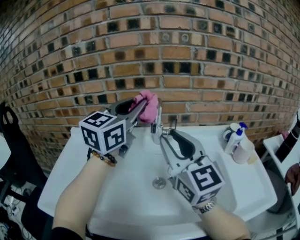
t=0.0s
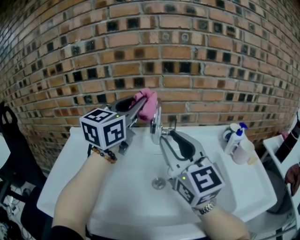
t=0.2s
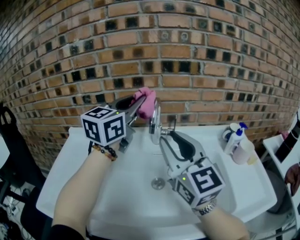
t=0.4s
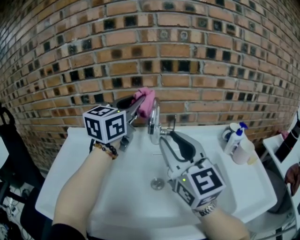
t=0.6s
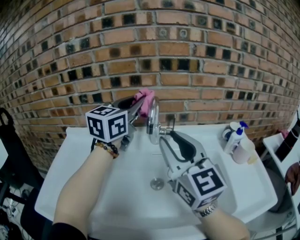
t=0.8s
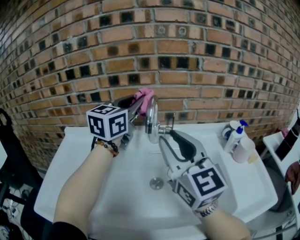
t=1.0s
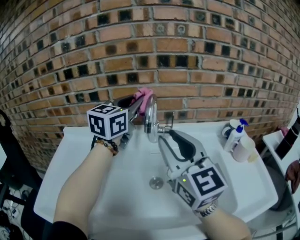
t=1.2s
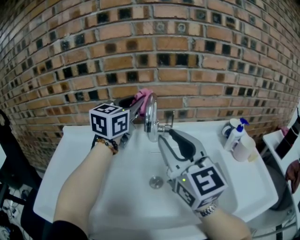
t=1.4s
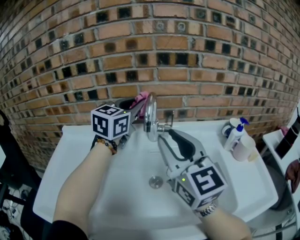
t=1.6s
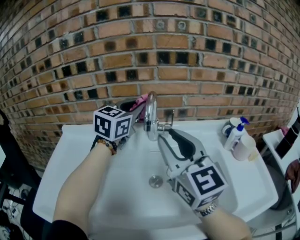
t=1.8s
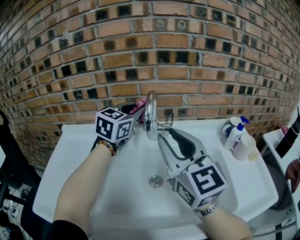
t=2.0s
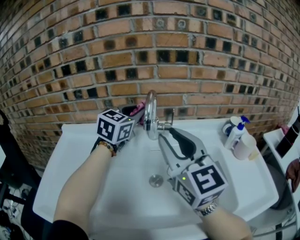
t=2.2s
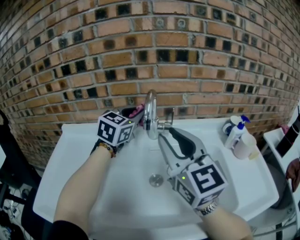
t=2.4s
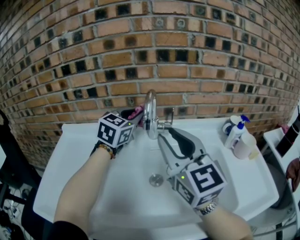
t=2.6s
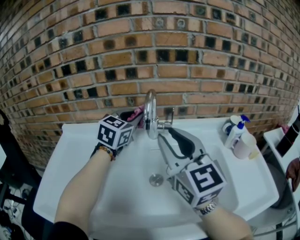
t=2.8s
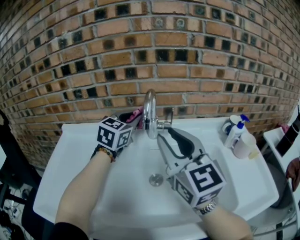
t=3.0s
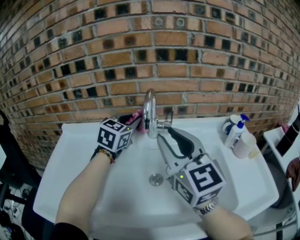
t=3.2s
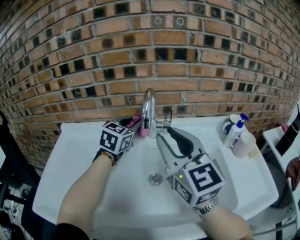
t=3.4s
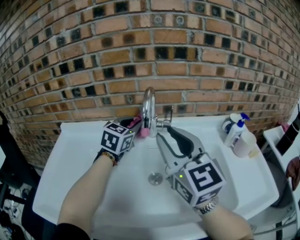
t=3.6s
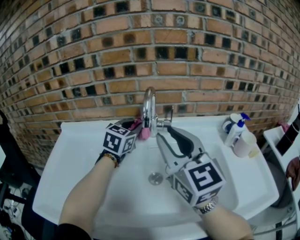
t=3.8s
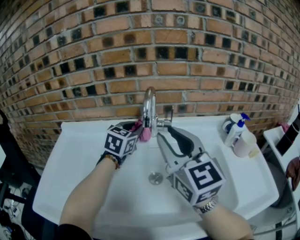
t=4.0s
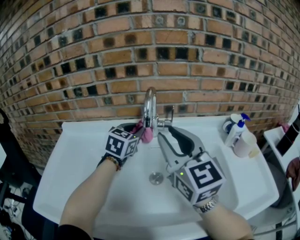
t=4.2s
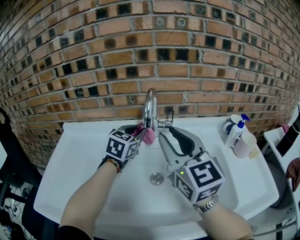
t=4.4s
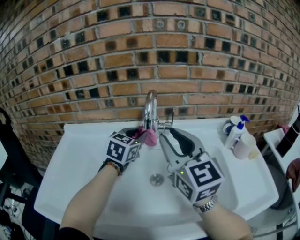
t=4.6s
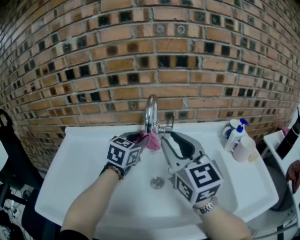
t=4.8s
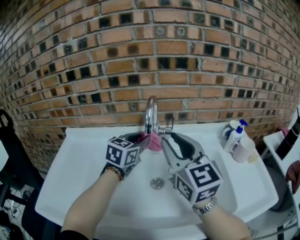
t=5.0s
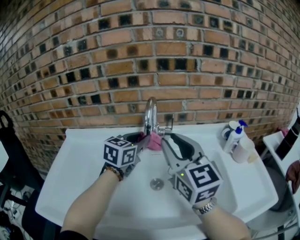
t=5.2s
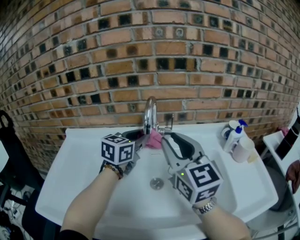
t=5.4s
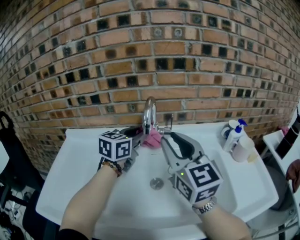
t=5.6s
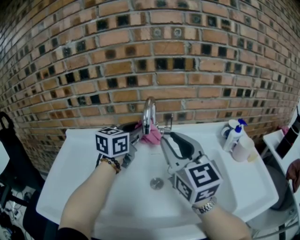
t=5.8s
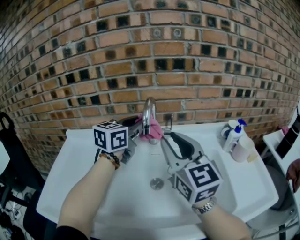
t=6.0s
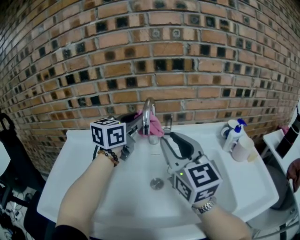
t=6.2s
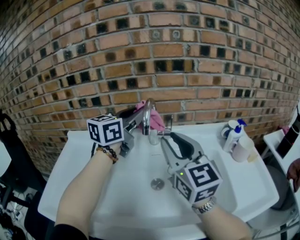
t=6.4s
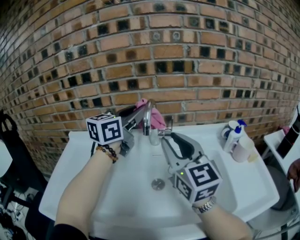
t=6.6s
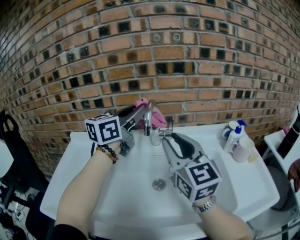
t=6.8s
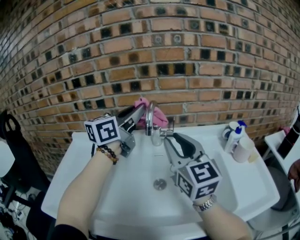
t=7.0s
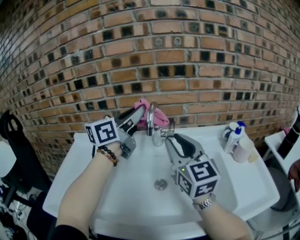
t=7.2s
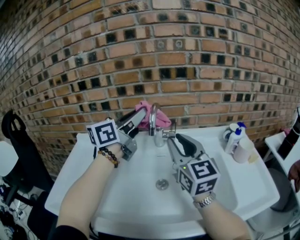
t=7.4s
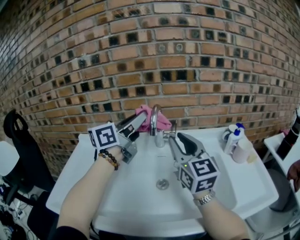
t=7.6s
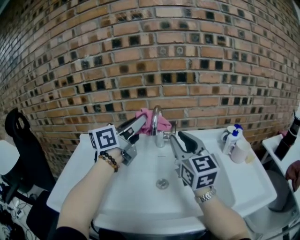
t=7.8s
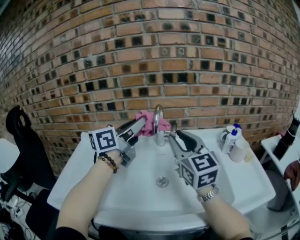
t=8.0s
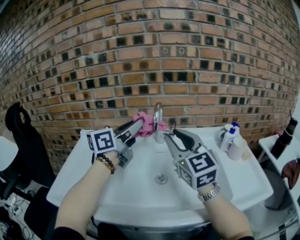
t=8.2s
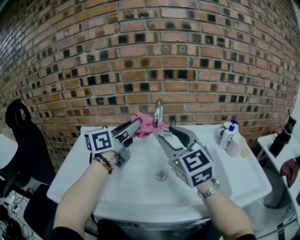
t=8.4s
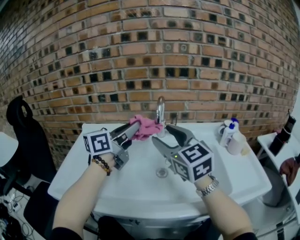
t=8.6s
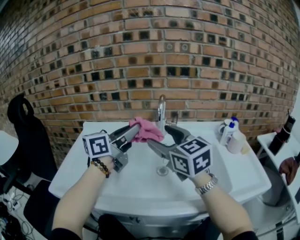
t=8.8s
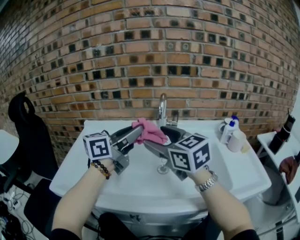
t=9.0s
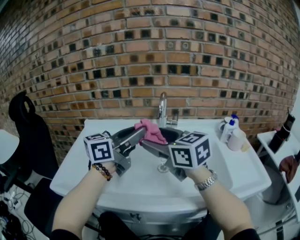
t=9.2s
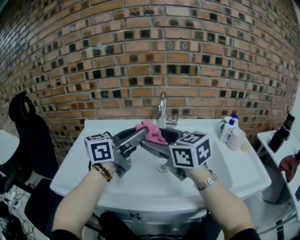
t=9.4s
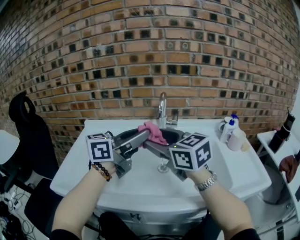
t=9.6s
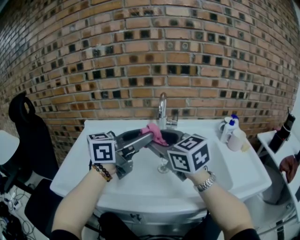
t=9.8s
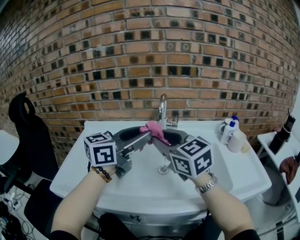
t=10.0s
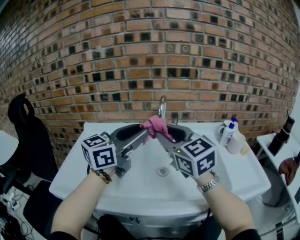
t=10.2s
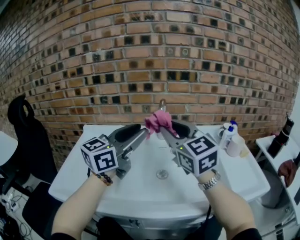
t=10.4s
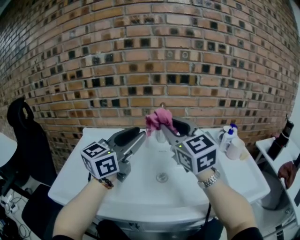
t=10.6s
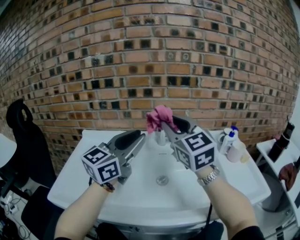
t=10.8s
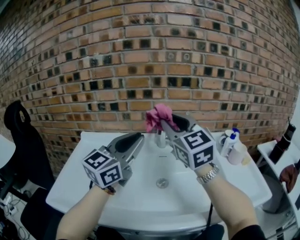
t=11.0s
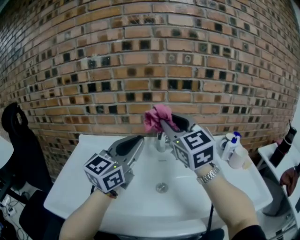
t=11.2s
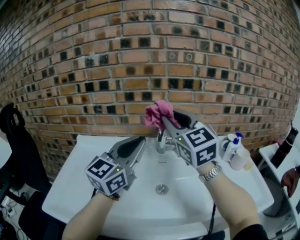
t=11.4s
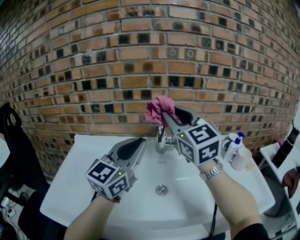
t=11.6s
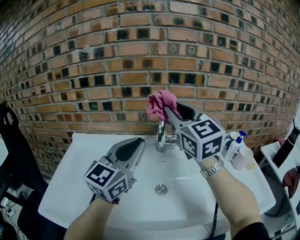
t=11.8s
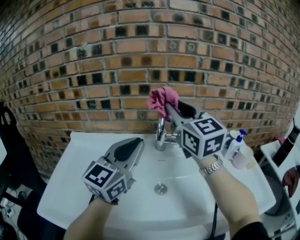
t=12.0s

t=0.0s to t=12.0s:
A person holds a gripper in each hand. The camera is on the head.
t=0.0s to t=1.6s: The left gripper moves forward and downward, approximately 10 cm.
t=1.6s to t=3.0s: The left gripper moves downward, some 10 cm.
t=3.0s to t=4.4s: The left gripper is displaced downward by roughly 5 cm.
t=4.4s to t=6.0s: The left gripper travels upward by about 10 cm, and turns by roughly 20 degrees.
t=6.0s to t=7.6s: The left gripper moves upward and backward, roughly 10 cm, and changes its angle by about 30 degrees.
t=7.6s to t=9.0s: The left gripper moves backward, some 10 cm; the right gripper is displaced to the left and backward by roughly 15 cm, swivels roughly 30 degrees, and opens its fingers.
t=9.0s to t=10.4s: The right gripper moves upward, some 5 cm, and closes its fingers.
t=10.4s to t=12.0s: The right gripper is displaced forward by roughly 15 cm, while the left gripper travels forward by some 5 cm, and closes.

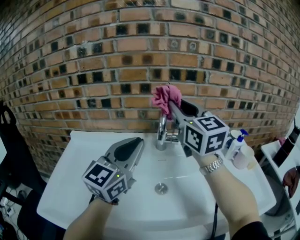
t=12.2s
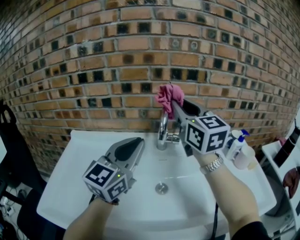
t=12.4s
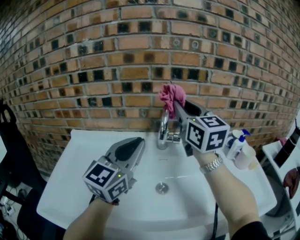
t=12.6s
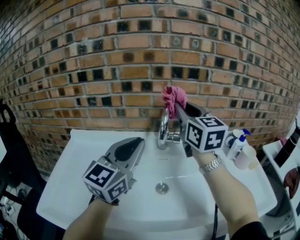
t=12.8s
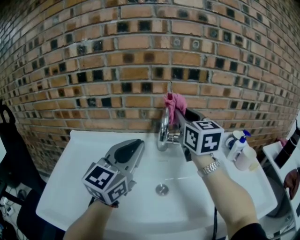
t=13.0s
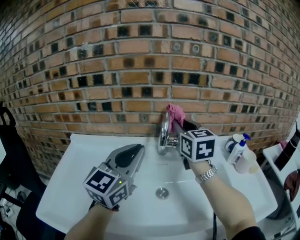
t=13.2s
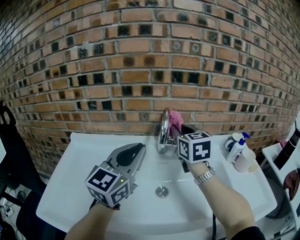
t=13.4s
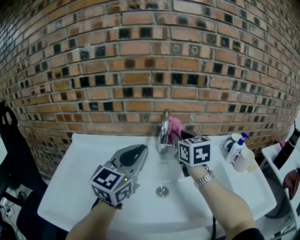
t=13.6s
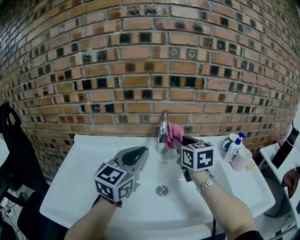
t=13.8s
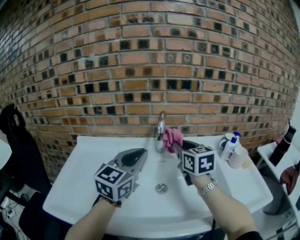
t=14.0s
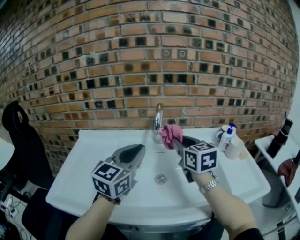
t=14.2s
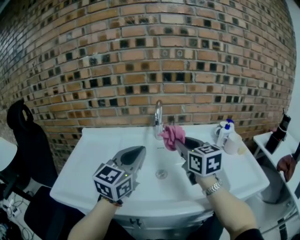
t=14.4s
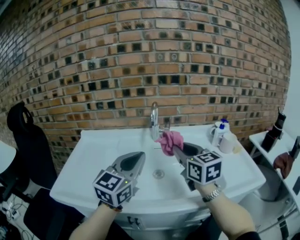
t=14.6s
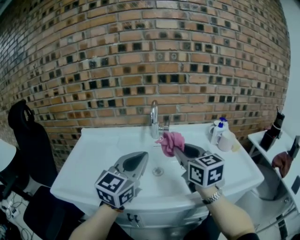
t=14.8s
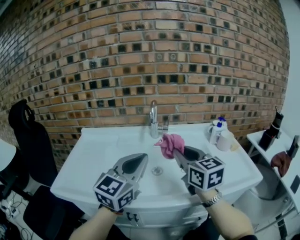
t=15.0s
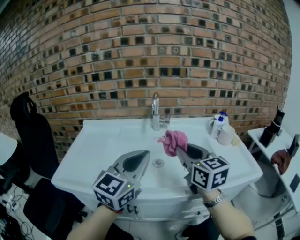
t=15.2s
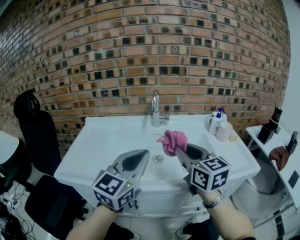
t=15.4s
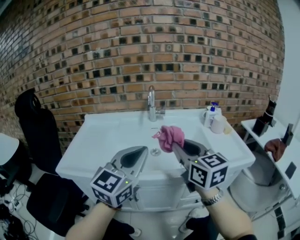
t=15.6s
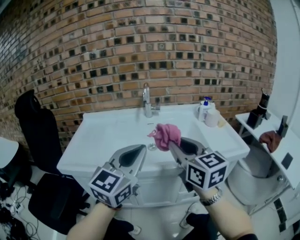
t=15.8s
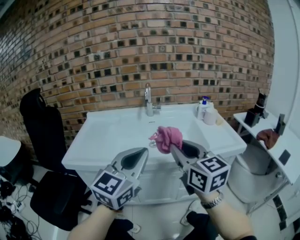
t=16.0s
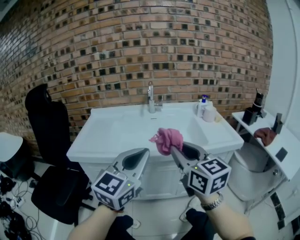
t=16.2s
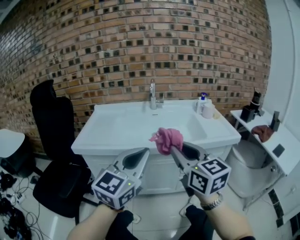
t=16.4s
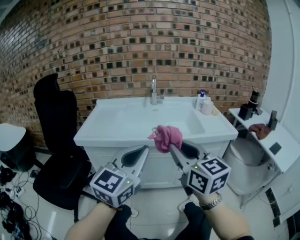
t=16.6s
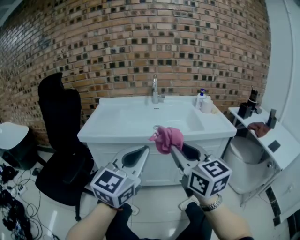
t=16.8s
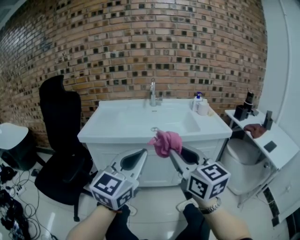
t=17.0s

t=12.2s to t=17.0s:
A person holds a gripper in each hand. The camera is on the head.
t=12.2s to t=13.8s: The right gripper heads downward, covering roughly 15 cm, and swivels about 20 degrees.
t=13.8s to t=15.4s: The two grippers go some 25 cm backward.
t=15.4s to t=17.0s: Both grippers travel together backward, some 35 cm.

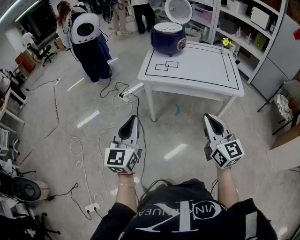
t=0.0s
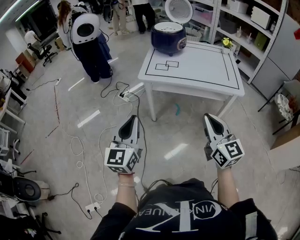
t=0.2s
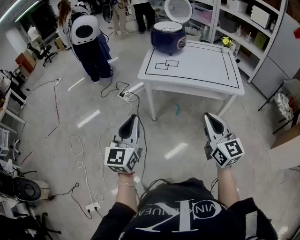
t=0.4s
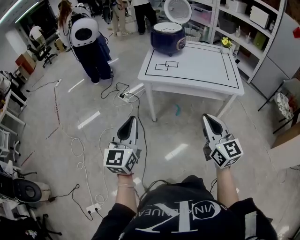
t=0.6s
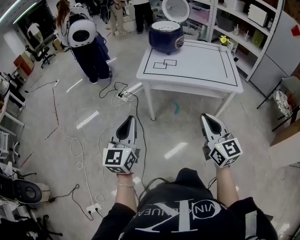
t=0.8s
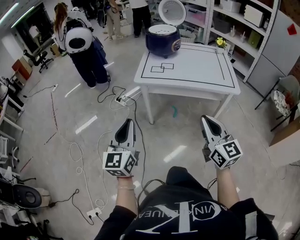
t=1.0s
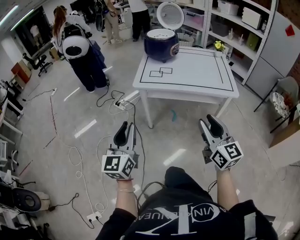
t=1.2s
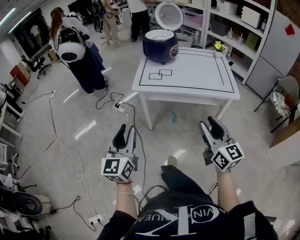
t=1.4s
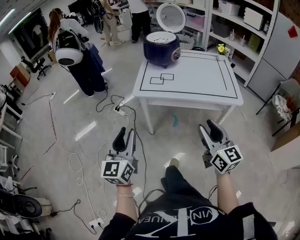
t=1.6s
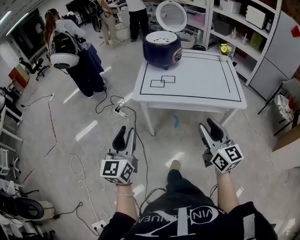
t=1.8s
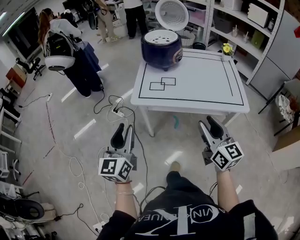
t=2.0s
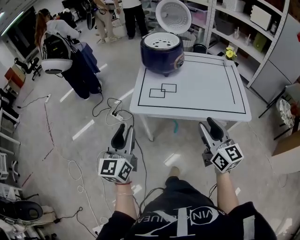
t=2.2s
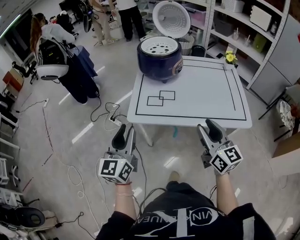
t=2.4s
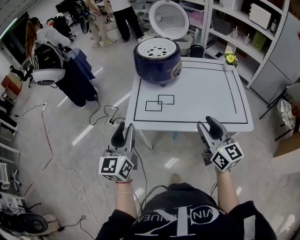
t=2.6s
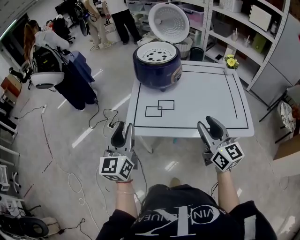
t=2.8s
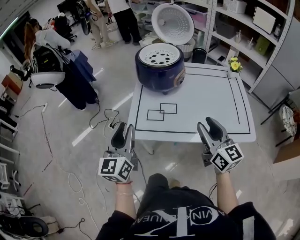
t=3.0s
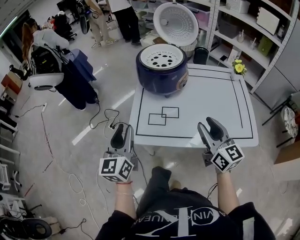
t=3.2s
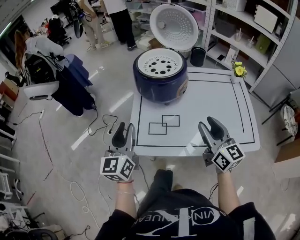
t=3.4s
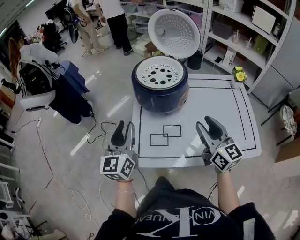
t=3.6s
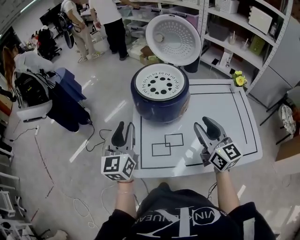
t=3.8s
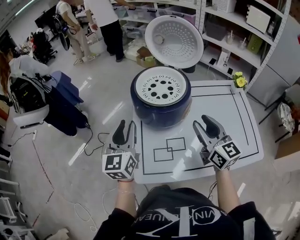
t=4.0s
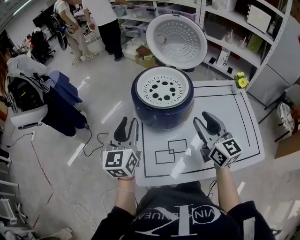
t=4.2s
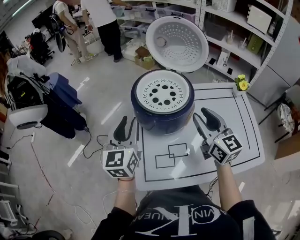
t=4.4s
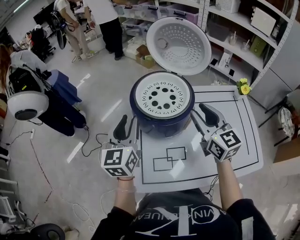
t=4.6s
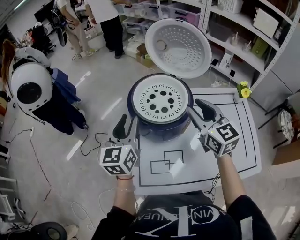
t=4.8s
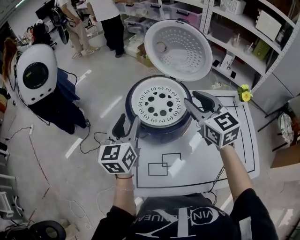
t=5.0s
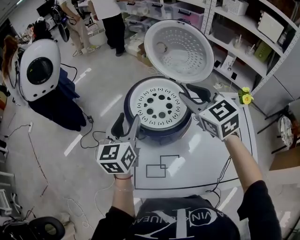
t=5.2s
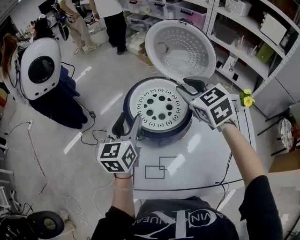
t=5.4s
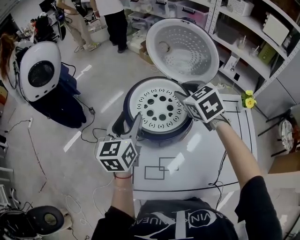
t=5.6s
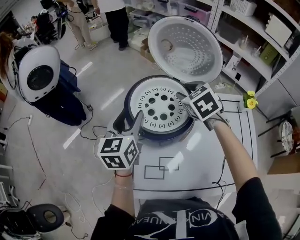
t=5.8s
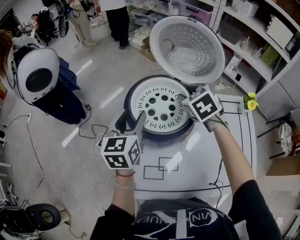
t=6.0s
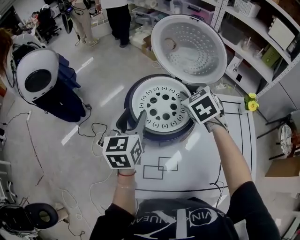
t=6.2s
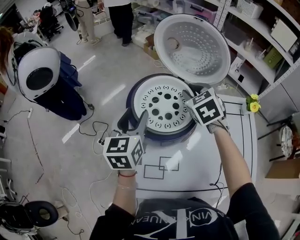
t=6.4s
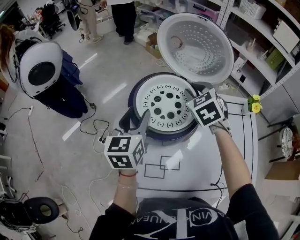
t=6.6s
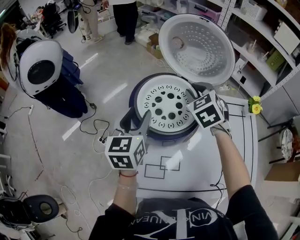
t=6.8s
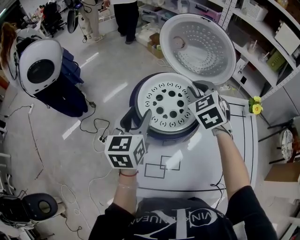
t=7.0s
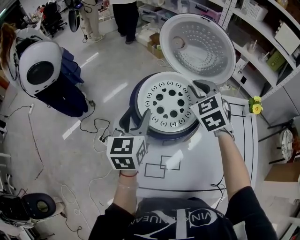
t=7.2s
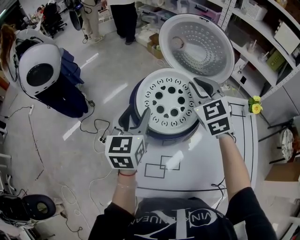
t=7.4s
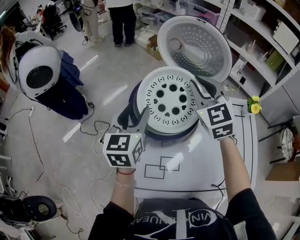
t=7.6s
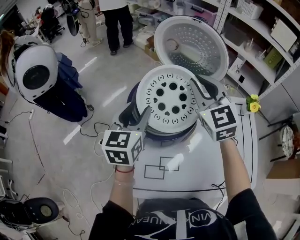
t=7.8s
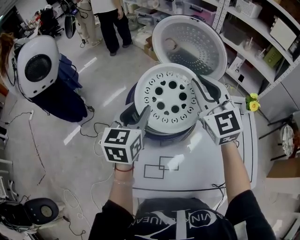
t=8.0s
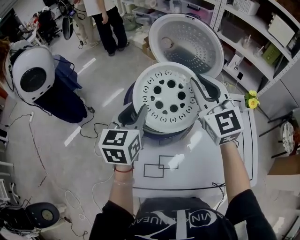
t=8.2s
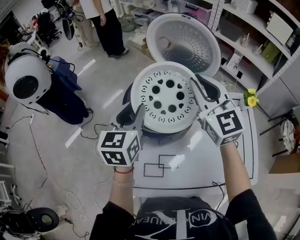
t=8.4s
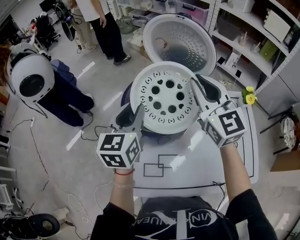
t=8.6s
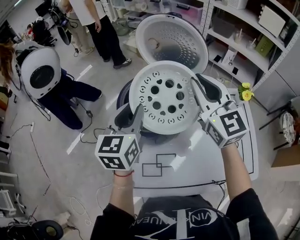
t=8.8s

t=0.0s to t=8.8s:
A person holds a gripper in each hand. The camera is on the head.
t=0.0s to t=1.4s: The right gripper opens its fingers, while the left gripper opens its fingers.
t=1.4s to t=3.0s: Both grippers travel together forward, approximately 35 cm.
t=3.0s to t=4.4s: The grippers both shift forward by about 30 cm.
t=4.4s to t=5.8s: The right gripper shifts approximately 20 cm forward, and tips its fingers downward by approximately 40 degrees, while the left gripper heads forward and to the right, covering roughly 10 cm, and opens up.
t=5.8s to t=7.4s: The right gripper shifts about 5 cm upward, swivels about 20 degrees, and closes up.
t=7.4s to t=8.8s: The right gripper goes roughly 10 cm upward and backward, and swivels approximately 30 degrees, while the left gripper closes up.
